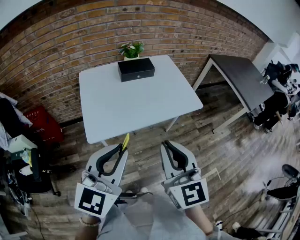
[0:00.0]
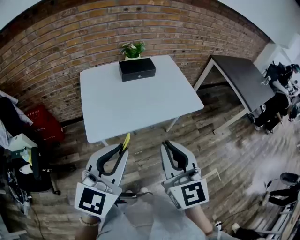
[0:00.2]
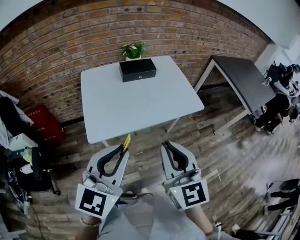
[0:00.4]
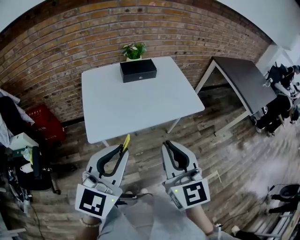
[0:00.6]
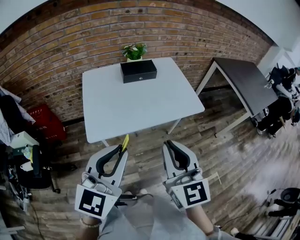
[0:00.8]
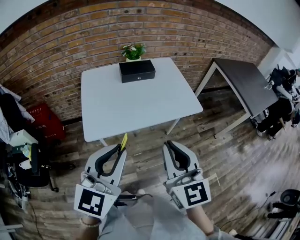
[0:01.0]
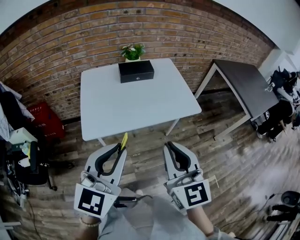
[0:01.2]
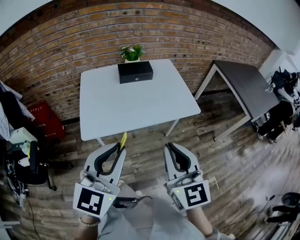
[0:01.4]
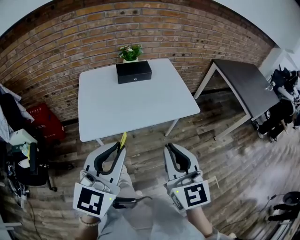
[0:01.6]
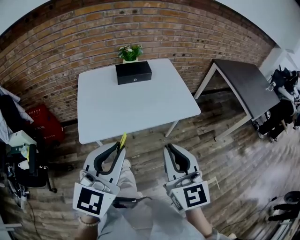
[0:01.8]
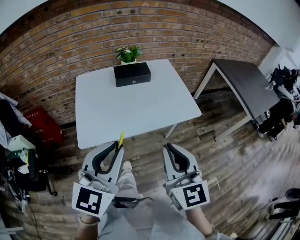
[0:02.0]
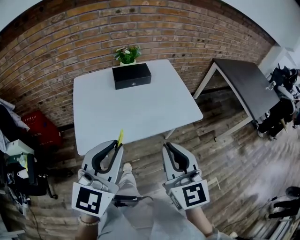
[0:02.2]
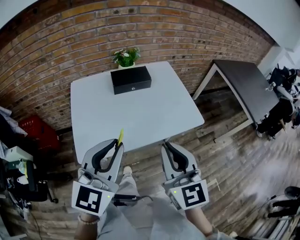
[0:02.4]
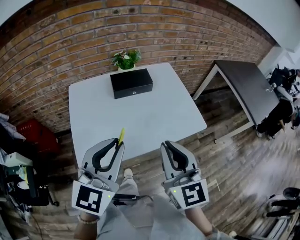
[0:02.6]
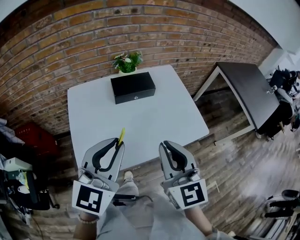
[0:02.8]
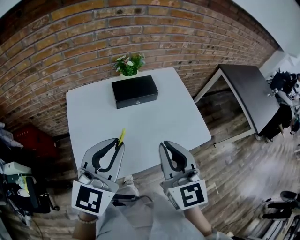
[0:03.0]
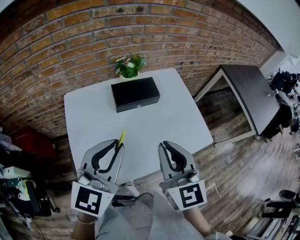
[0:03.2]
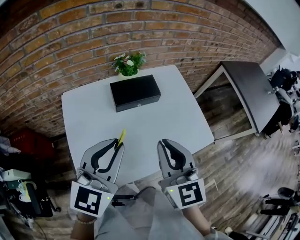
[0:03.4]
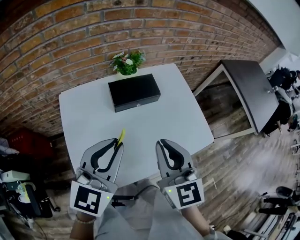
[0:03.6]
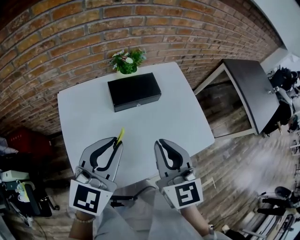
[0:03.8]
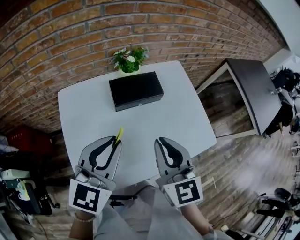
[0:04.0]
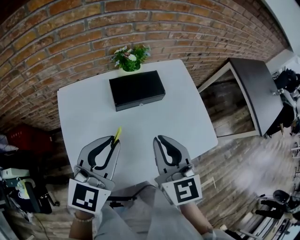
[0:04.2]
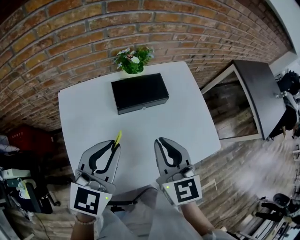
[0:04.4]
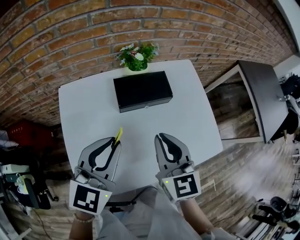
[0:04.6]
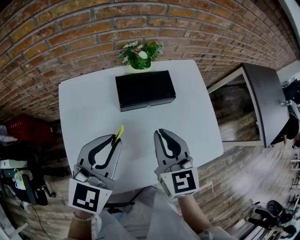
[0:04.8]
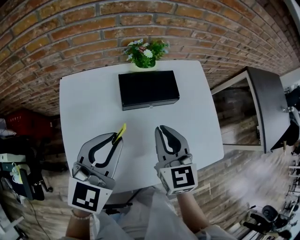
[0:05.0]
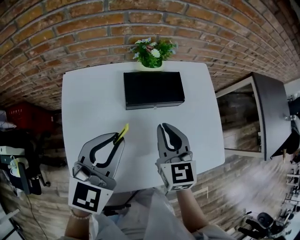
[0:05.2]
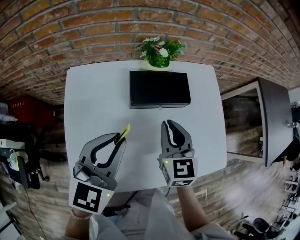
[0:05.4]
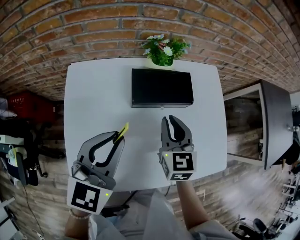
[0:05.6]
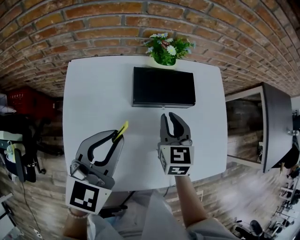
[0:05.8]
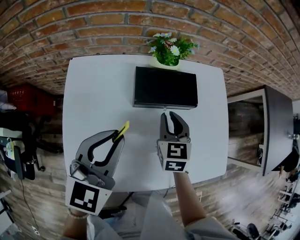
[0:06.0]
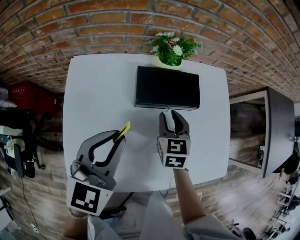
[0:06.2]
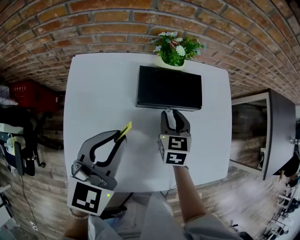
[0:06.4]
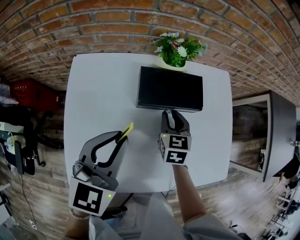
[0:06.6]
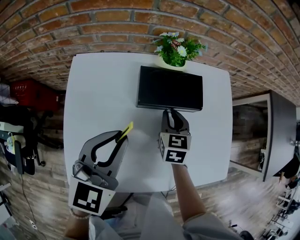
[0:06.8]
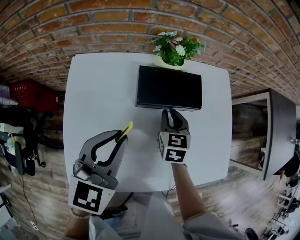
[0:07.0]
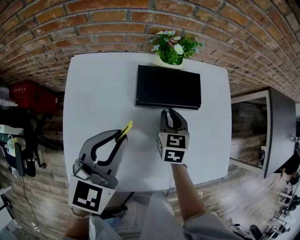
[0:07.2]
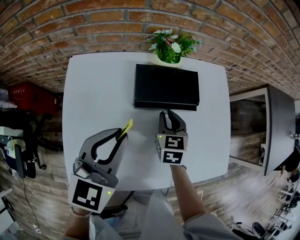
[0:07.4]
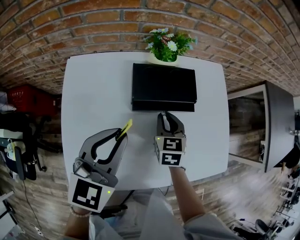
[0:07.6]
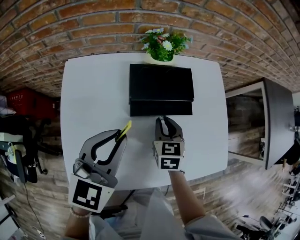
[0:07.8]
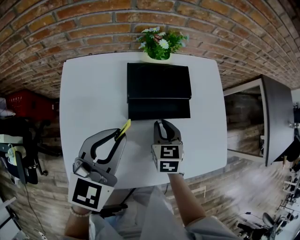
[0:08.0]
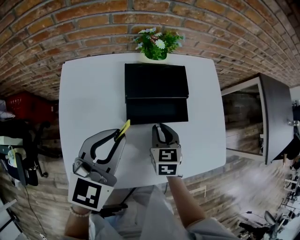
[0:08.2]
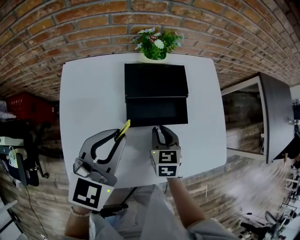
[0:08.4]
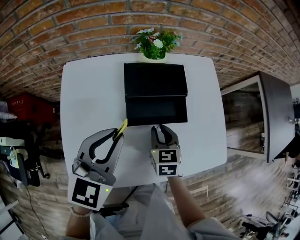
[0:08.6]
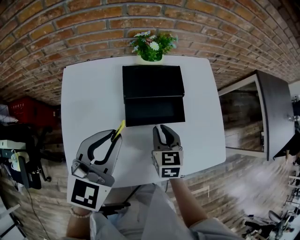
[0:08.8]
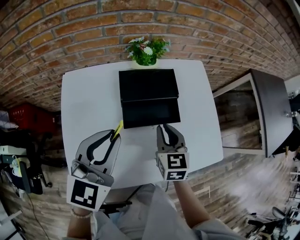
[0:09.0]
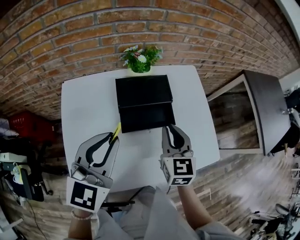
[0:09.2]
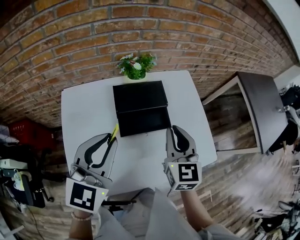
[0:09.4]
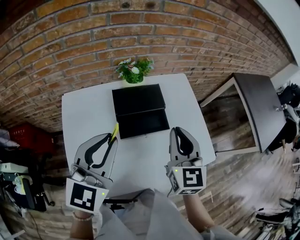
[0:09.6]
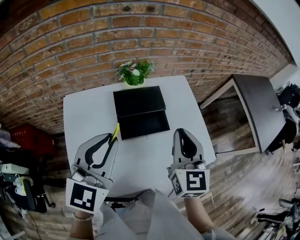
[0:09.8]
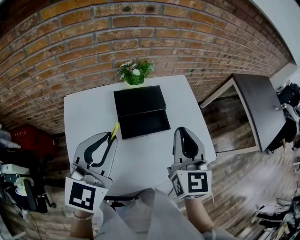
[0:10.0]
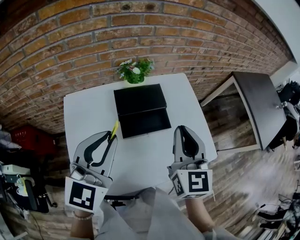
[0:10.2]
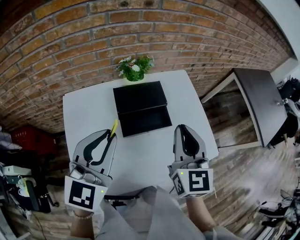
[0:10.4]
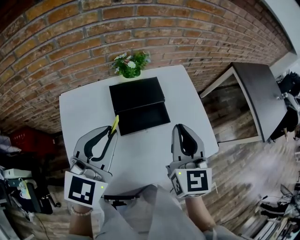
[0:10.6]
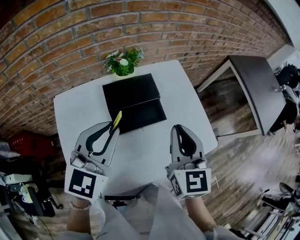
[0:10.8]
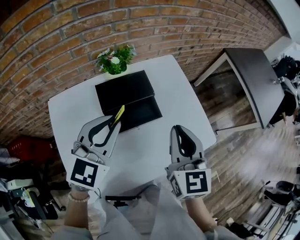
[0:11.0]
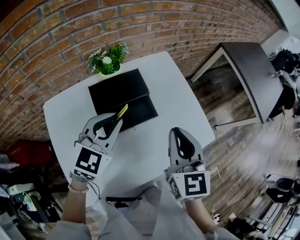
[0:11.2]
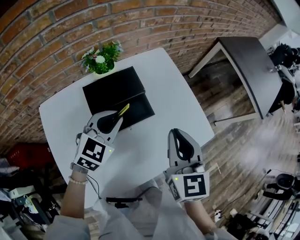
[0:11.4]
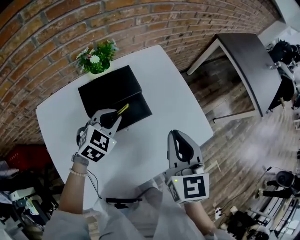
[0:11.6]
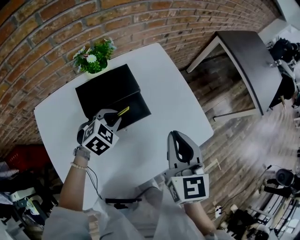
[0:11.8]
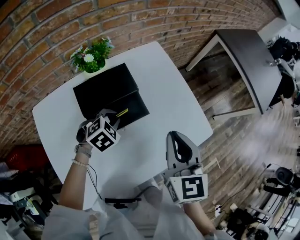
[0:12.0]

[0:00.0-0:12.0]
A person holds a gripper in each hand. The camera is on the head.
0.0 to 1.6 s: Both grippers travel together to the right, approximately 10 cm.
1.6 to 3.0 s: The grippers both shift forward by some 30 cm.
3.0 to 4.4 s: Both grippers travel together forward and downward, approximately 15 cm.
4.4 to 6.0 s: The right gripper goes approximately 25 cm downward and forward, while the left gripper moves downward and forward, some 10 cm.
6.0 to 7.6 s: The grippers stay close to where they were, moving slightly.
7.6 to 9.0 s: The right gripper travels upward and backward by approximately 10 cm. Meanwhile the left gripper shifts approximately 5 cm upward.
9.0 to 10.4 s: The left gripper goes some 10 cm upward. The right gripper goes approximately 20 cm upward, and swivels approximately 20 degrees.
10.4 to 12.0 s: The right gripper goes about 15 cm downward and to the right. The left gripper shifts approximately 35 cm downward and forward, and points its fingers approximately 50 degrees further downward.

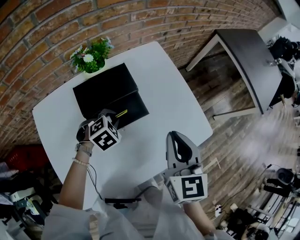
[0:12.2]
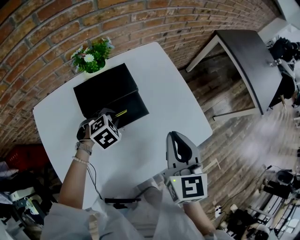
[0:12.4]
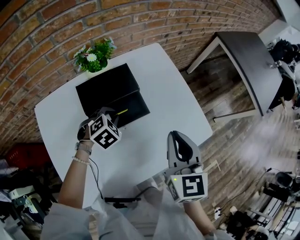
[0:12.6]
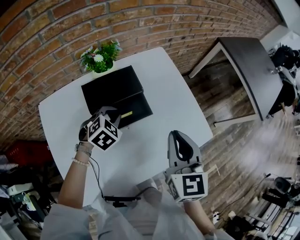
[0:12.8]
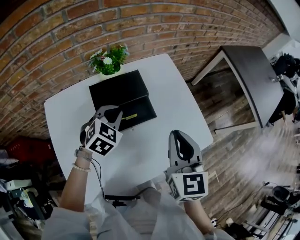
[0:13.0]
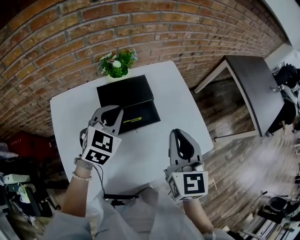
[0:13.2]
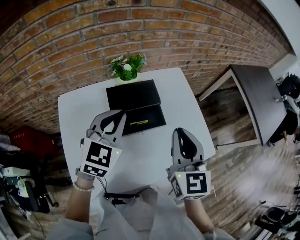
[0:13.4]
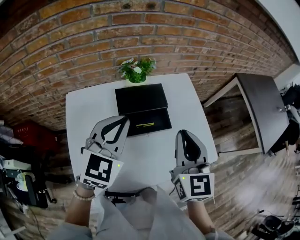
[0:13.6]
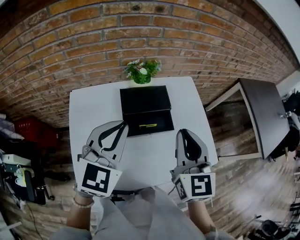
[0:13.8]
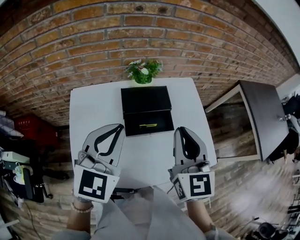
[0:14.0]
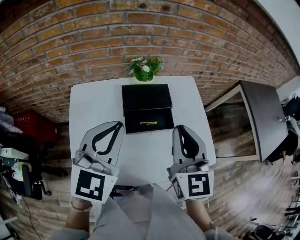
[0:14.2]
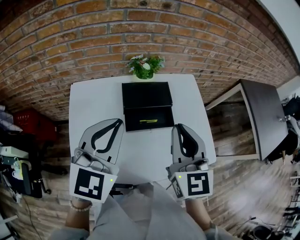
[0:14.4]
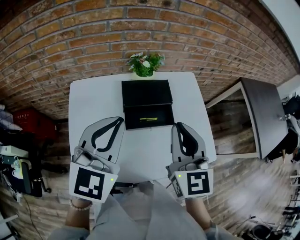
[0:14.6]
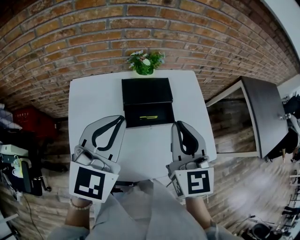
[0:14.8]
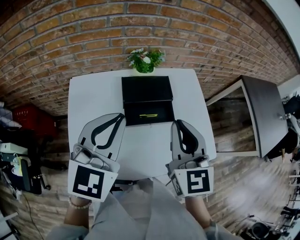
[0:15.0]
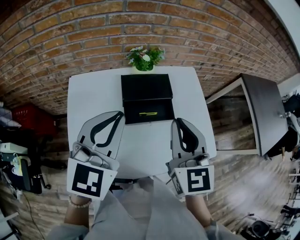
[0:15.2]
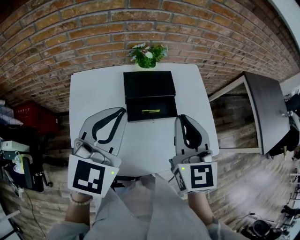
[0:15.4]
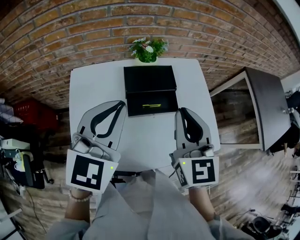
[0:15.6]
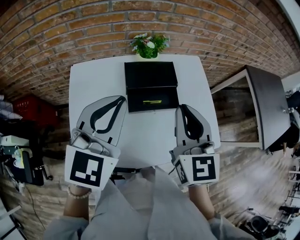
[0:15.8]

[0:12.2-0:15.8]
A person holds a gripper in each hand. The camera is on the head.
12.2 to 14.0 s: The right gripper goes some 15 cm upward and to the left, and changes its angle by some 20 degrees. Meanwhile the left gripper is displaced upward and backward by some 35 cm, and angles its fingers upward, by approximately 50 degrees.
14.0 to 15.8 s: The grippers stay close to where they were, moving slightly.

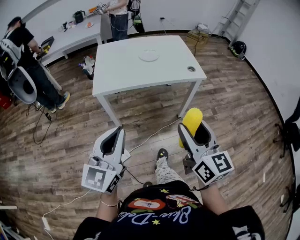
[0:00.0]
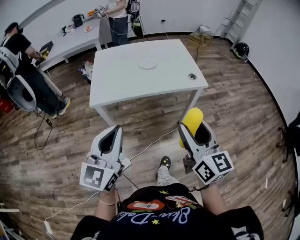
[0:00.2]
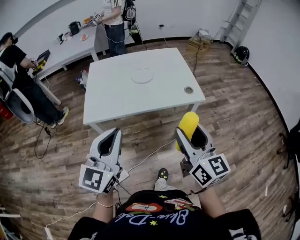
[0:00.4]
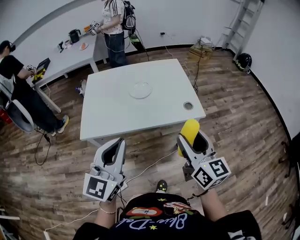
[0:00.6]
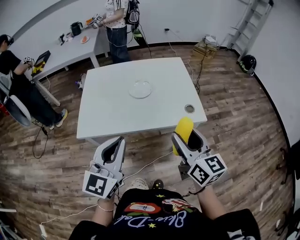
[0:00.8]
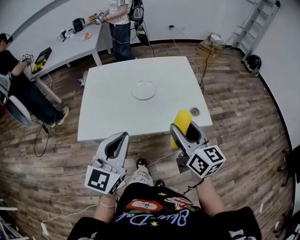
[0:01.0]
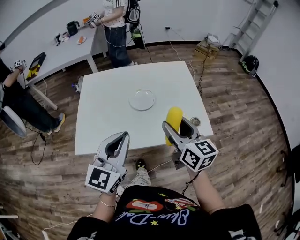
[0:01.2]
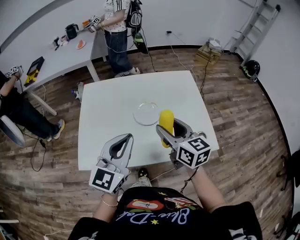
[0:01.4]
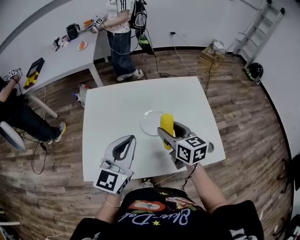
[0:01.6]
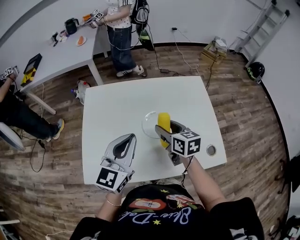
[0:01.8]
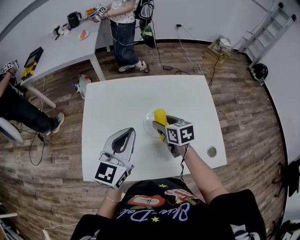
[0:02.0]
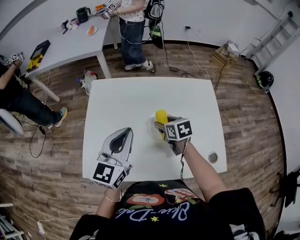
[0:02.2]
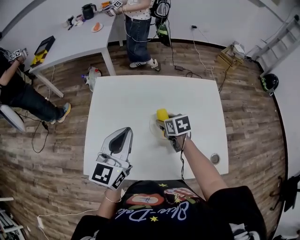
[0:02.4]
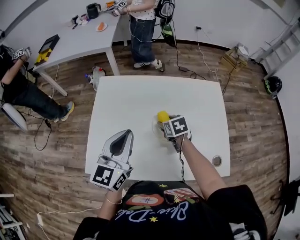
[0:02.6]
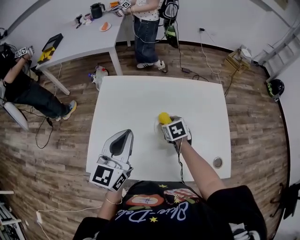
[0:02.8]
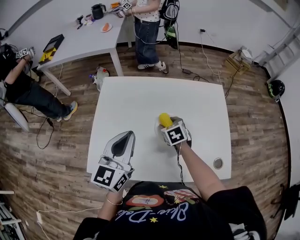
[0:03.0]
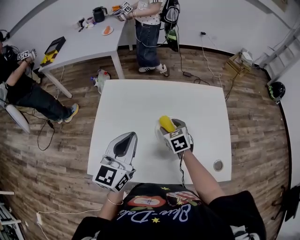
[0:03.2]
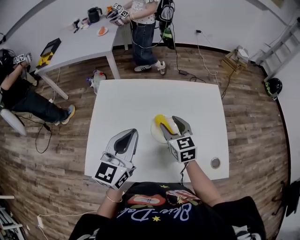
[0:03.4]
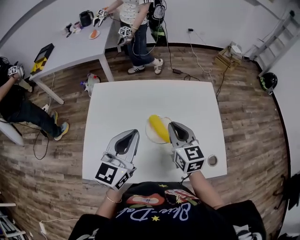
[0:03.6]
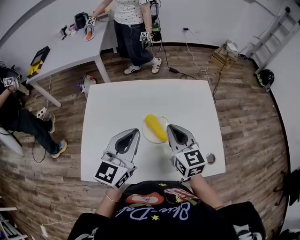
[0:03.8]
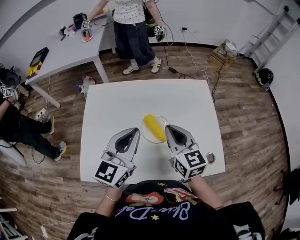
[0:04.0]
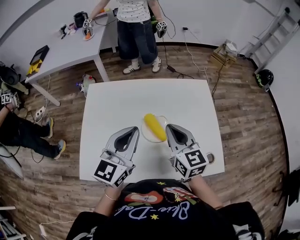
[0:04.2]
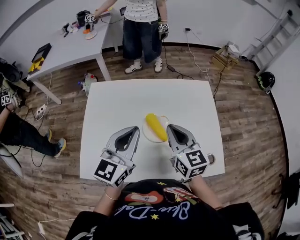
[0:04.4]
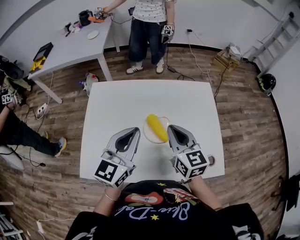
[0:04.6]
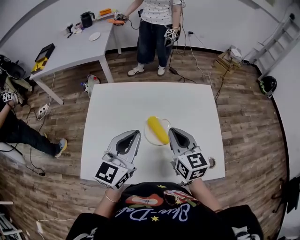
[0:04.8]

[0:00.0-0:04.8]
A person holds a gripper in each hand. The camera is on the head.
0.0 to 1.6 s: Both grippers are carried forward, some 60 cm. The right gripper rotates about 30 degrees.
1.6 to 3.2 s: The right gripper goes about 15 cm downward and forward, and changes its angle by roughly 30 degrees; the left gripper shifts about 5 cm forward.
3.2 to 4.8 s: The right gripper goes approximately 20 cm upward, backward and to the right, rotates some 30 degrees, and closes its fingers; the left gripper goes some 5 cm to the right.

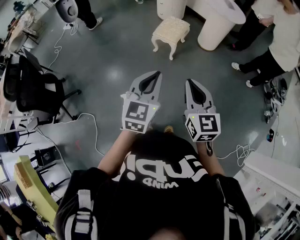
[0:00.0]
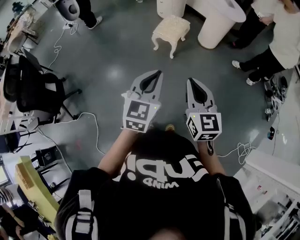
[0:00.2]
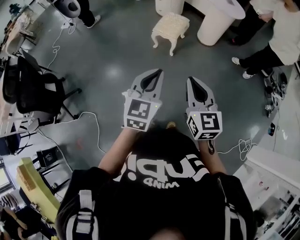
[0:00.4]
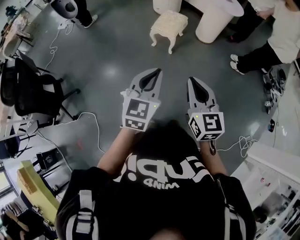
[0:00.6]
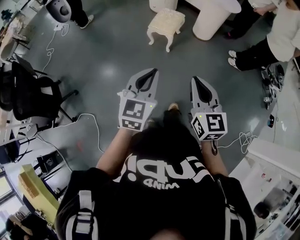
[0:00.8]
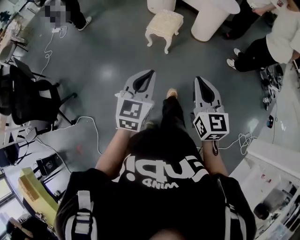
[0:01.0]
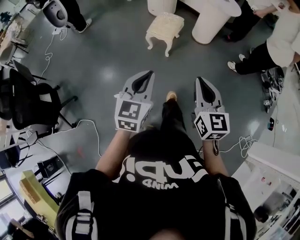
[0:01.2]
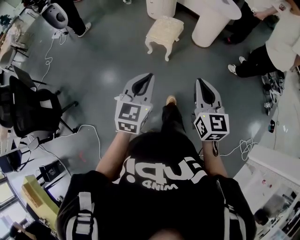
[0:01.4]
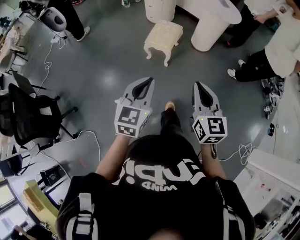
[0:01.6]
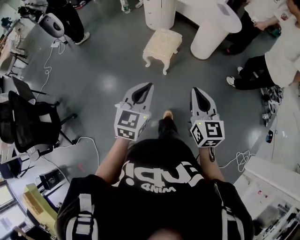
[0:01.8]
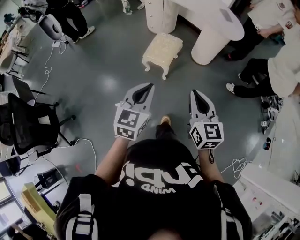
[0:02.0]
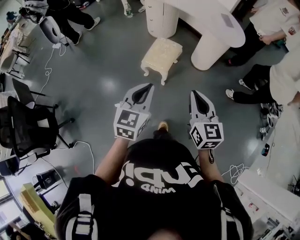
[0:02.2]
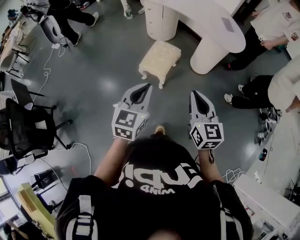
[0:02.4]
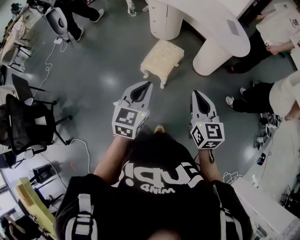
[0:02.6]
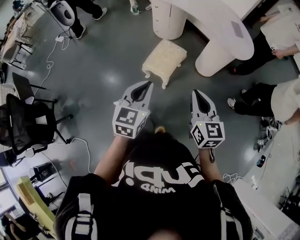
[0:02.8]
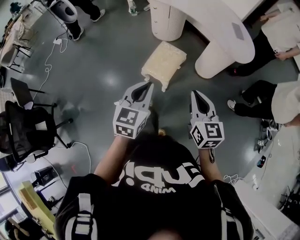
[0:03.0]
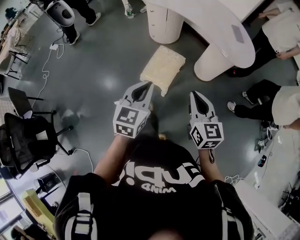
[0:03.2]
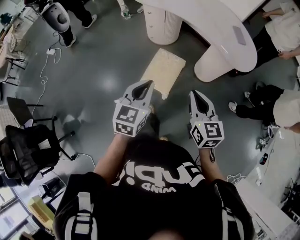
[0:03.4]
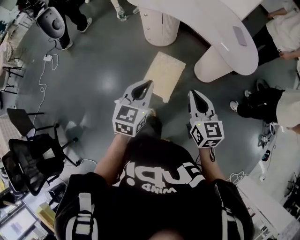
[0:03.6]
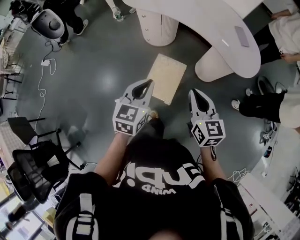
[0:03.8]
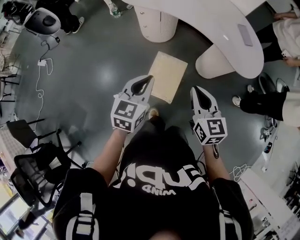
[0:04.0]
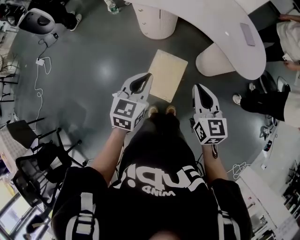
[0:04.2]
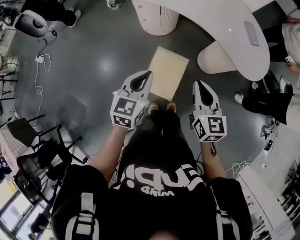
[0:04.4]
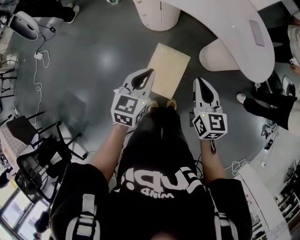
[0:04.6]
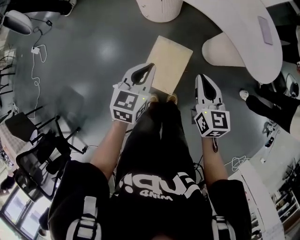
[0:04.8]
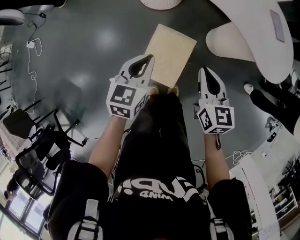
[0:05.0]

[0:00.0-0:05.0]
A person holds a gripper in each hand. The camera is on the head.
0.0 to 1.6 s: The grippers both shift forward by approximately 15 cm.
1.6 to 3.4 s: The two grippers travel together, forward, approximately 40 cm.
3.4 to 5.0 s: Both grippers move forward and downward, some 35 cm.
